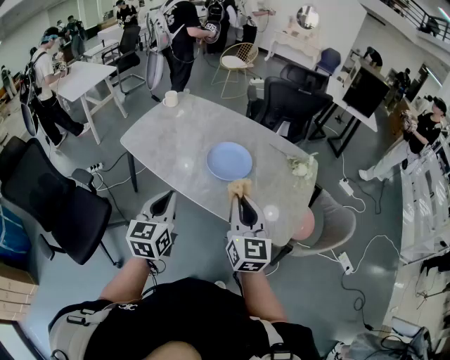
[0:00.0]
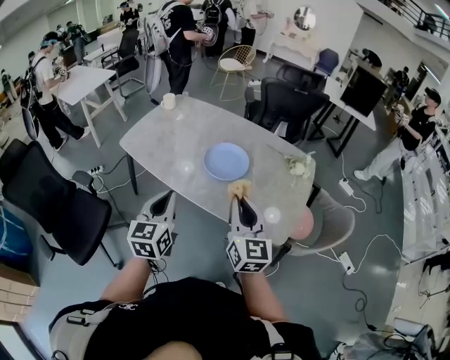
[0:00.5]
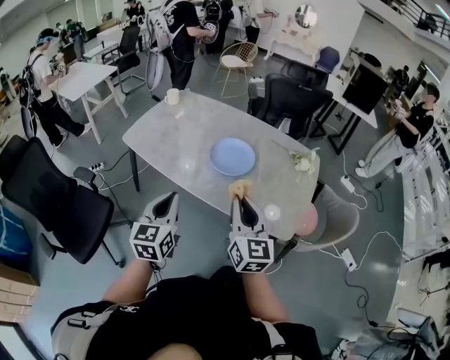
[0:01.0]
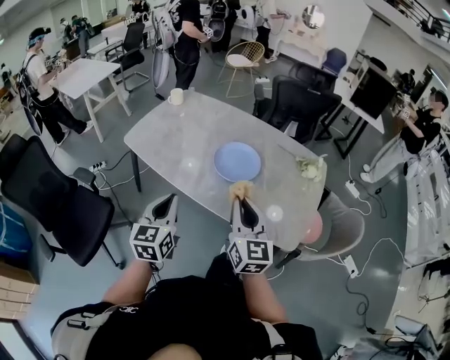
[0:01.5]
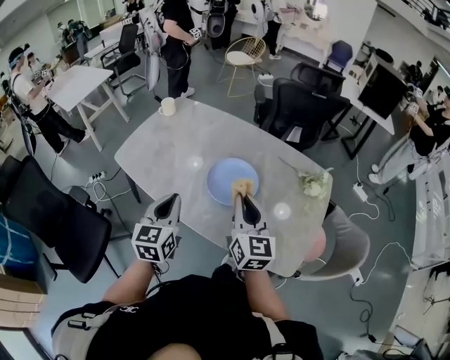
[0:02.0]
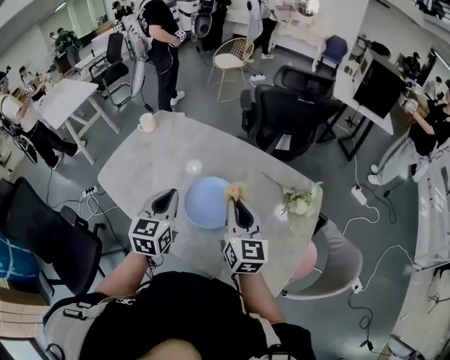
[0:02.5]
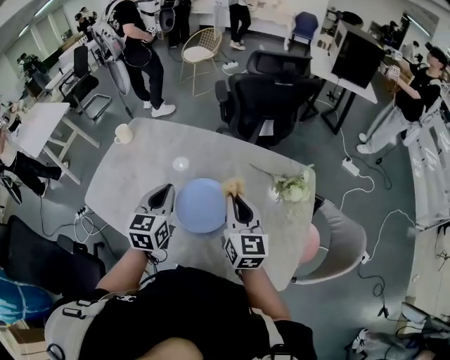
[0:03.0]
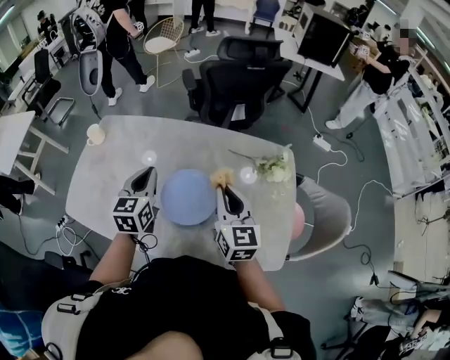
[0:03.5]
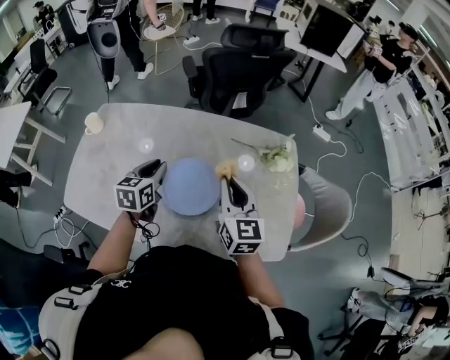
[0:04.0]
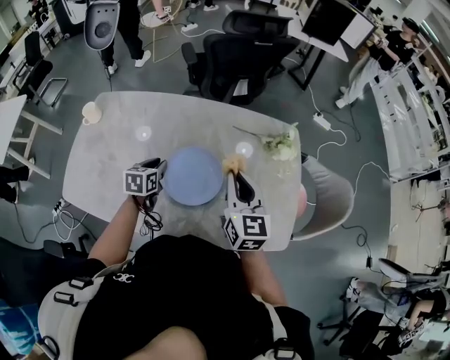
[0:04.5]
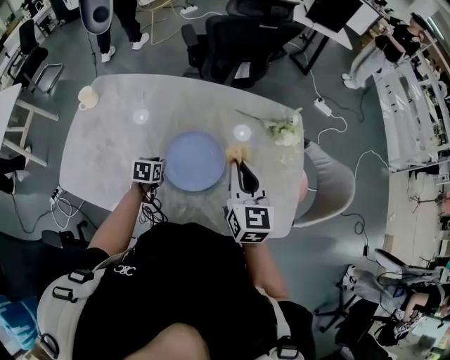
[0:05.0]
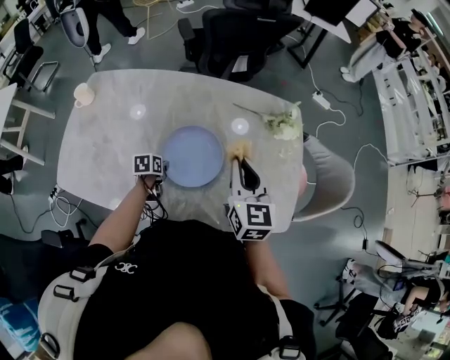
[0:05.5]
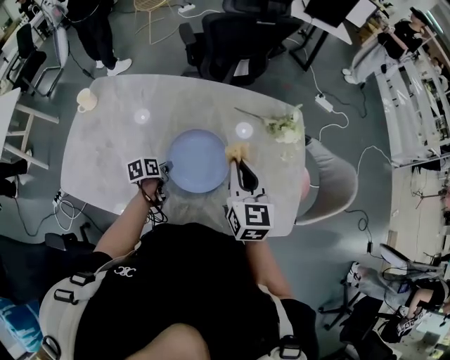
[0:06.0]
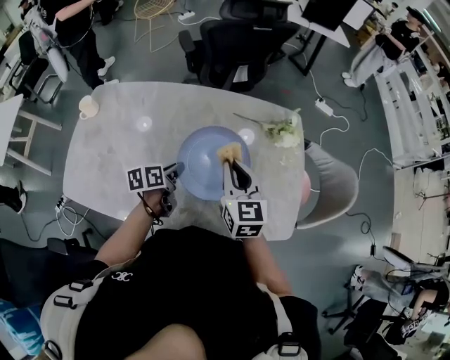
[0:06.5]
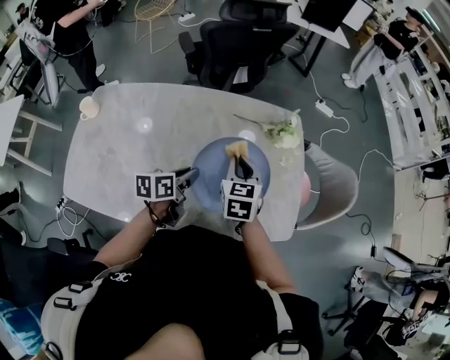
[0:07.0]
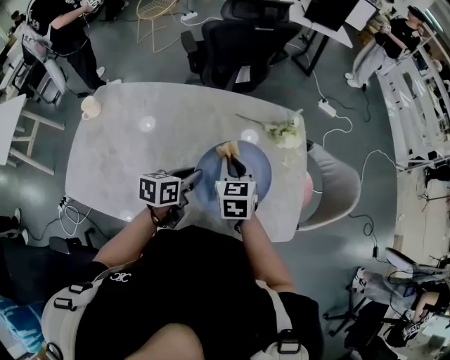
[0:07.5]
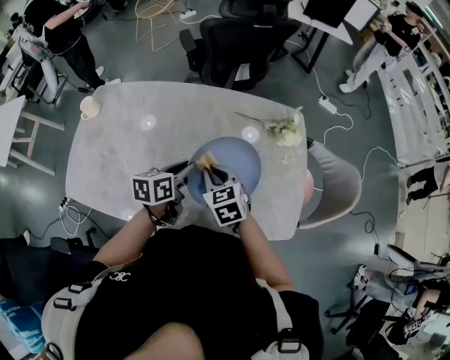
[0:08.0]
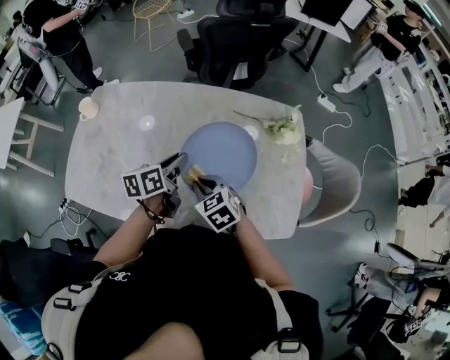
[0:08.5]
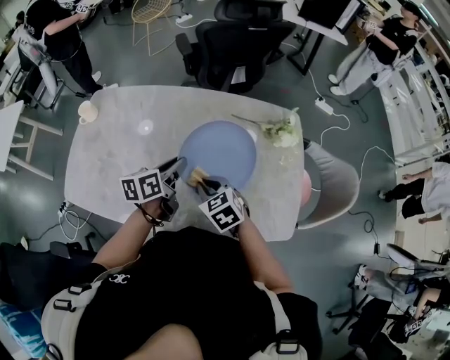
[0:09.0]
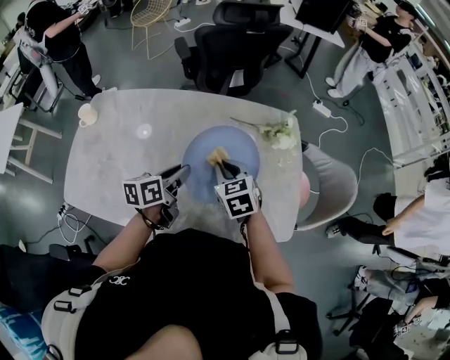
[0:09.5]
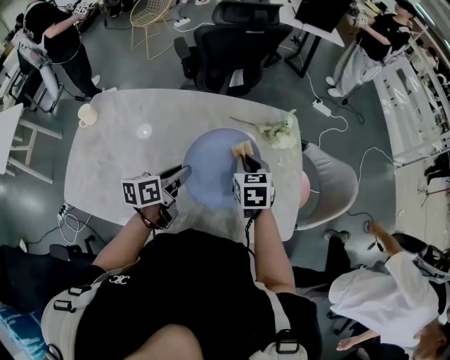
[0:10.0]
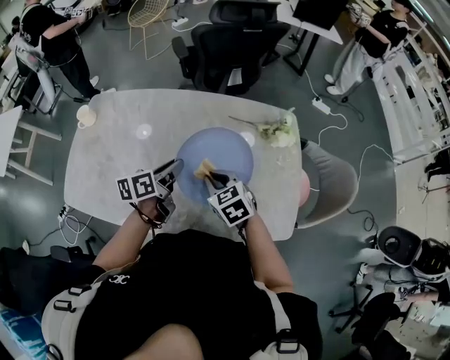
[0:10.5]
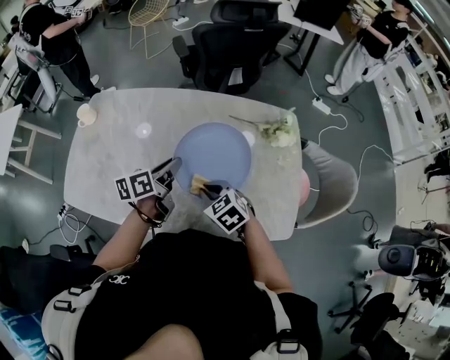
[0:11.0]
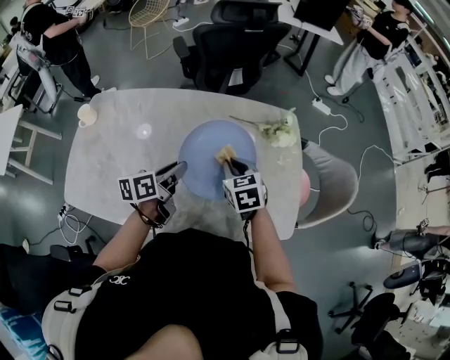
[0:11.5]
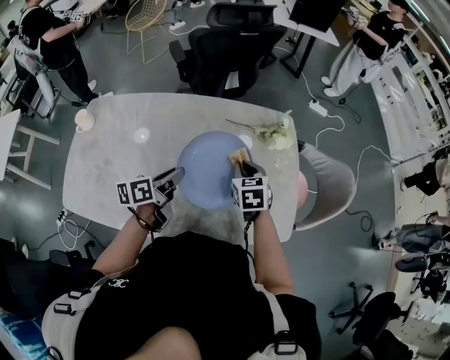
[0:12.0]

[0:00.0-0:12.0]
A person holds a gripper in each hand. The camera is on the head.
0:00.0 to 0:02.0: The two grippers go some 15 cm forward.
0:02.0 to 0:04.0: The left gripper is displaced forward by roughly 25 cm, and rotates approximately 30 degrees. The right gripper is displaced forward and to the right by about 15 cm.
0:04.0 to 0:06.0: The left gripper moves downward, some 20 cm, and rotates about 40 degrees.
0:06.0 to 0:08.0: The left gripper travels upward and to the right by approximately 20 cm, and rotates approximately 30 degrees. Meanwhile the right gripper is displaced downward and to the left by approximately 10 cm, and swivels some 30 degrees.
0:08.0 to 0:10.0: The right gripper moves to the right and forward, approximately 15 cm, and changes its angle by about 20 degrees.
0:10.0 to 0:12.0: The right gripper travels to the left and back again, some 10 cm each way.

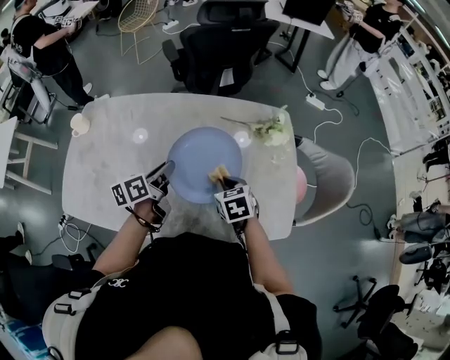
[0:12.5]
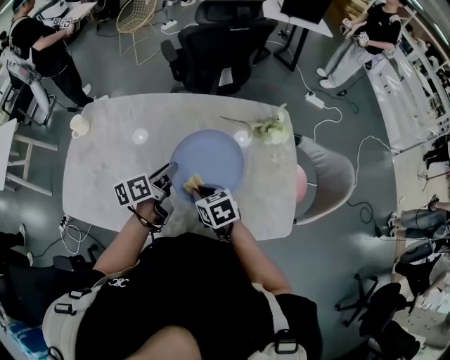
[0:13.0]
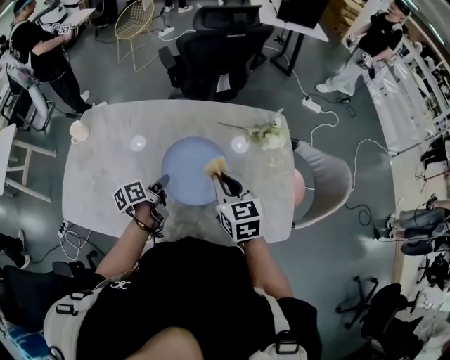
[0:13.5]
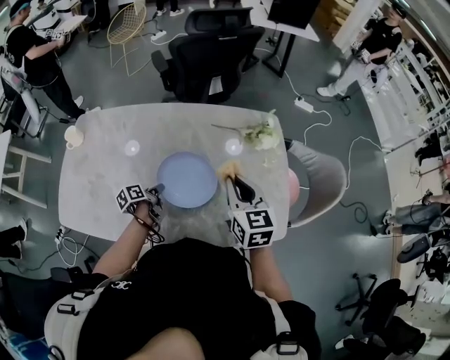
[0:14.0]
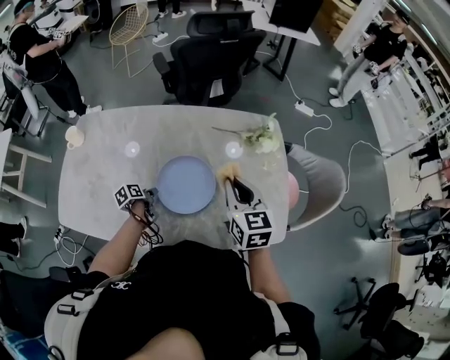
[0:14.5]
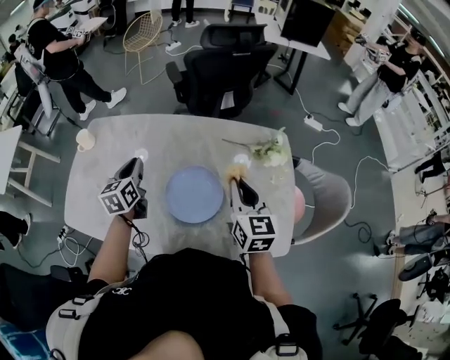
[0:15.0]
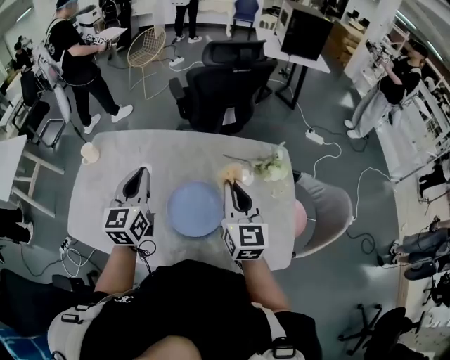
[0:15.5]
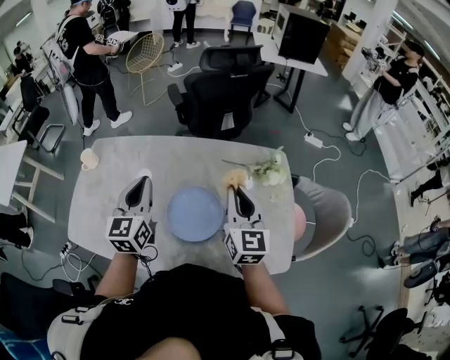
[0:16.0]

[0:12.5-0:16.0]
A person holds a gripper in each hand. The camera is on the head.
0:12.5 to 0:14.5: The left gripper moves downward and to the left, some 25 cm, and changes its angle by roughly 30 degrees; the right gripper shifts about 15 cm upward, and points its fingers about 30 degrees further upward.
0:14.5 to 0:16.0: The right gripper moves upward, approximately 5 cm. Meanwhile the left gripper heads upward, covering approximately 35 cm, and tips its fingers upward by approximately 40 degrees.

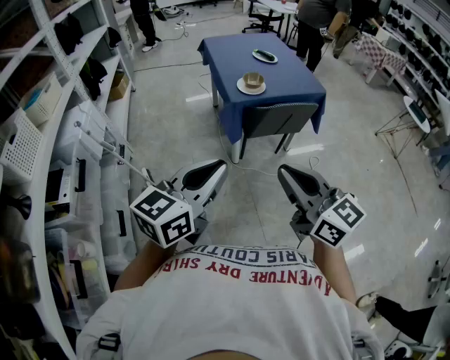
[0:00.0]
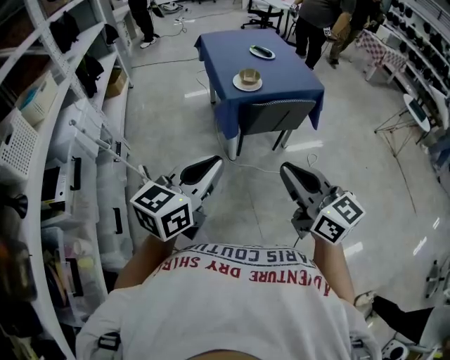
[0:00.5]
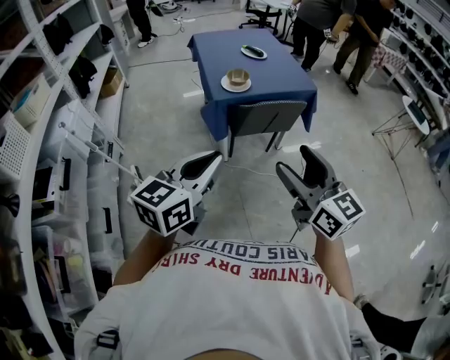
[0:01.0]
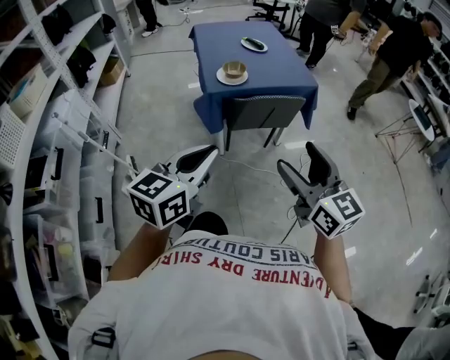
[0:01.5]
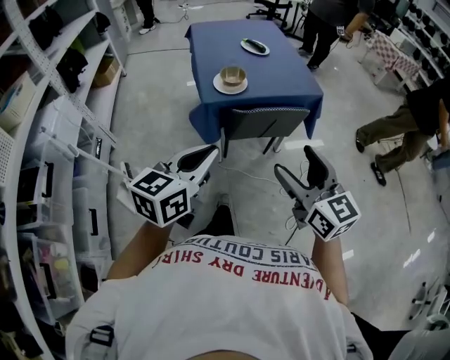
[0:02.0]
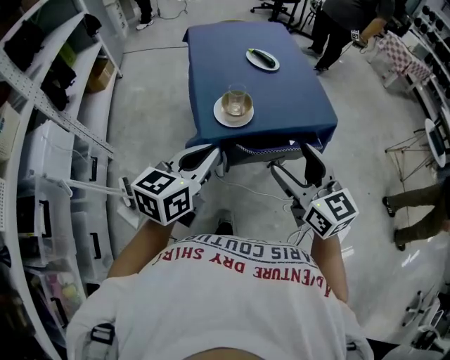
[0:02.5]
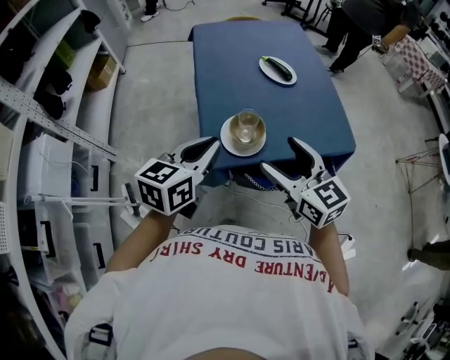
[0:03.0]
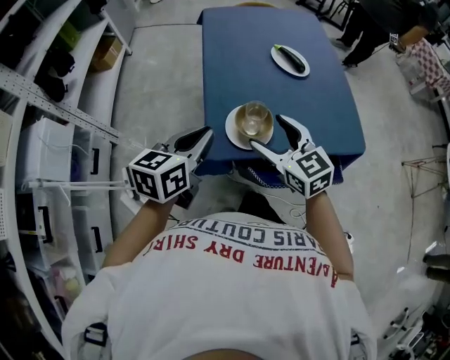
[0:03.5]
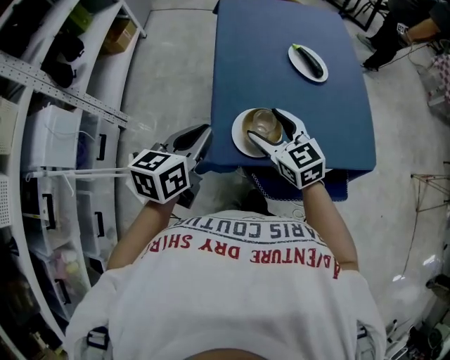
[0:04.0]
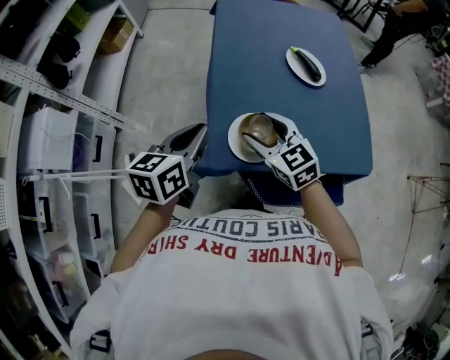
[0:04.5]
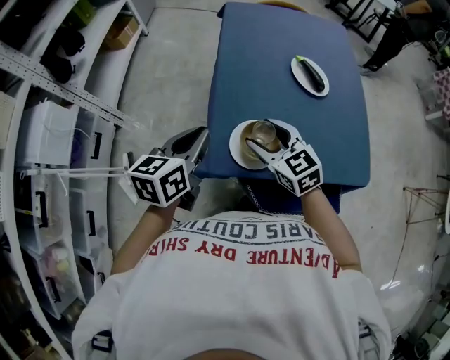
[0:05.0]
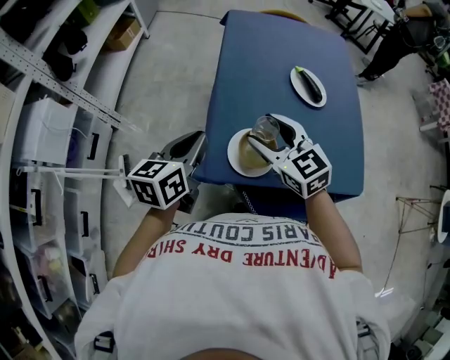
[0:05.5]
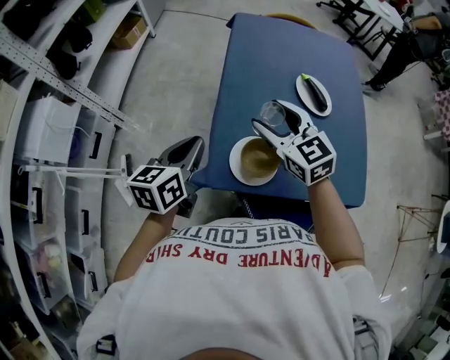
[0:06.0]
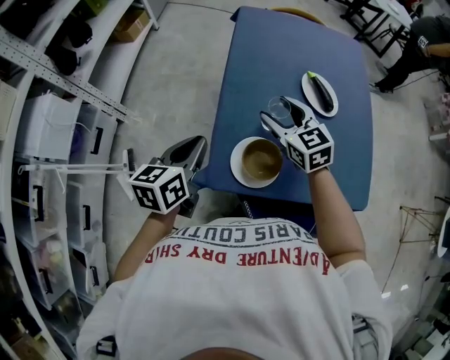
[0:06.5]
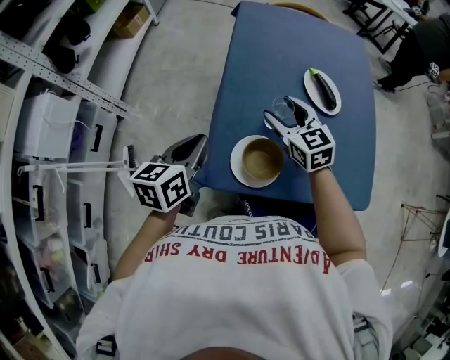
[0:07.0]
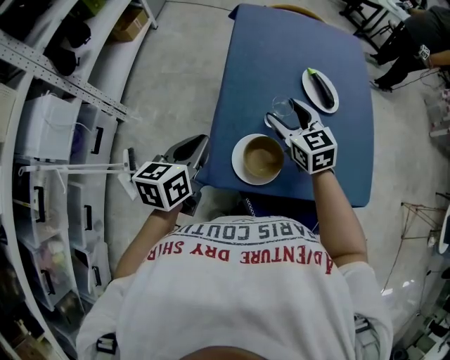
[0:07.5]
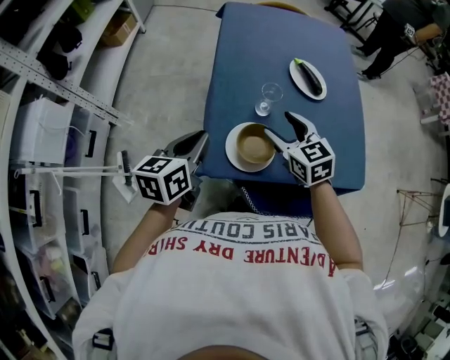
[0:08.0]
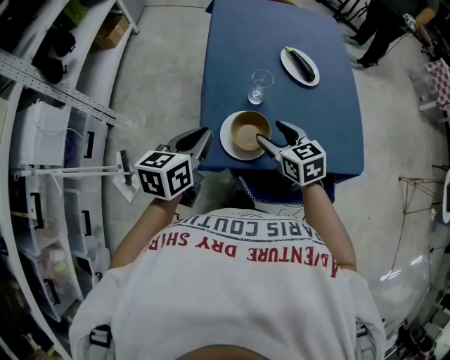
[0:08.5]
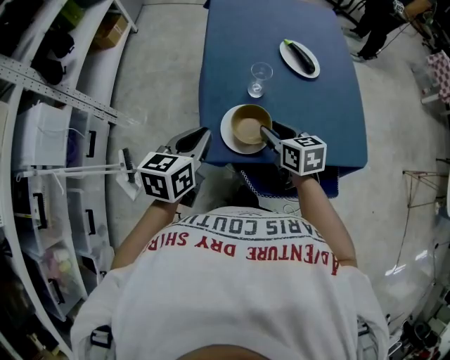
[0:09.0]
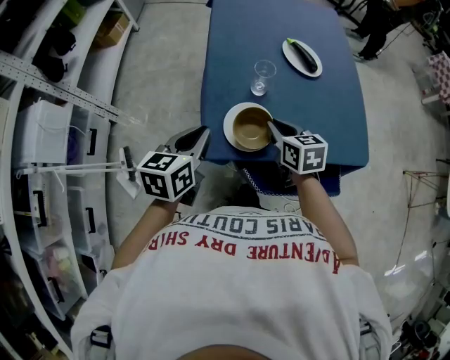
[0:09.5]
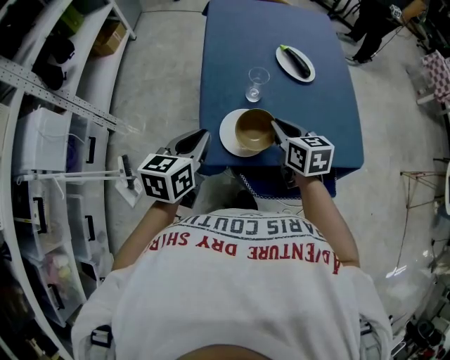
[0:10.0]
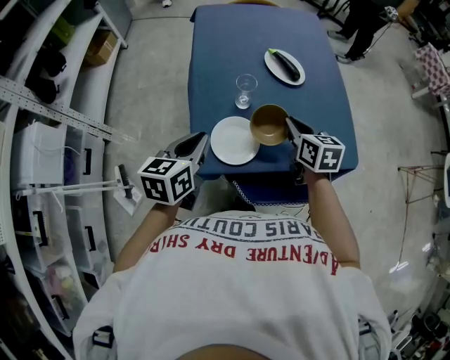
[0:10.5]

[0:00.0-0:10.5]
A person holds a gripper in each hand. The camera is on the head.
0:00.0 to 0:02.0: The grippers both shift forward, to the right and downward by approximately 25 cm. The right gripper opens its fingers.
0:02.0 to 0:04.0: The two grippers travel together, forward, some 40 cm. The left gripper changes its angle by some 20 degrees, while the right gripper rotates some 30 degrees.
0:04.0 to 0:06.5: The right gripper shifts some 15 cm forward. Meanwhile the left gripper ends up about 5 cm from where it was.
0:06.5 to 0:08.5: The right gripper moves backward and downward, about 15 cm. The left gripper ends up roughly 5 cm from where it was.
0:08.5 to 0:10.5: The right gripper is displaced to the right by roughly 10 cm, changes its angle by about 20 degrees, and closes its fingers.
